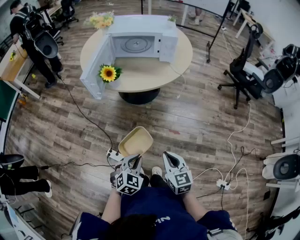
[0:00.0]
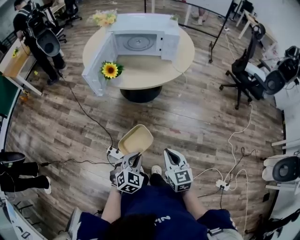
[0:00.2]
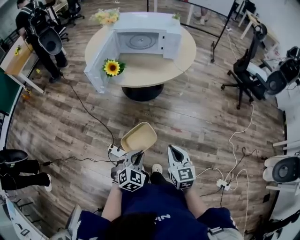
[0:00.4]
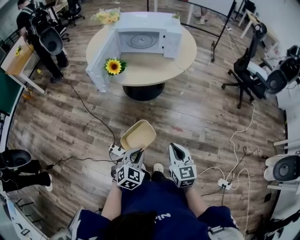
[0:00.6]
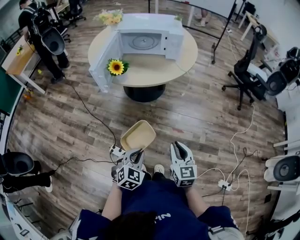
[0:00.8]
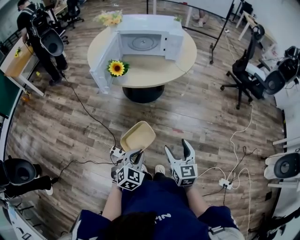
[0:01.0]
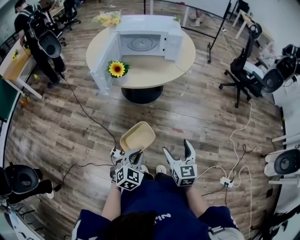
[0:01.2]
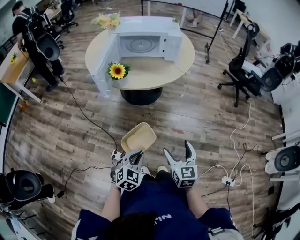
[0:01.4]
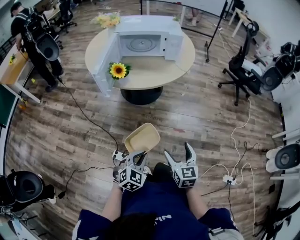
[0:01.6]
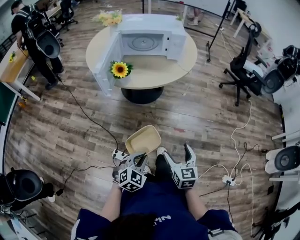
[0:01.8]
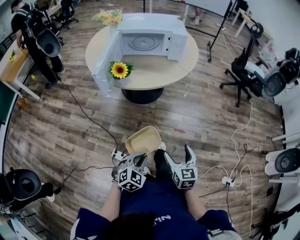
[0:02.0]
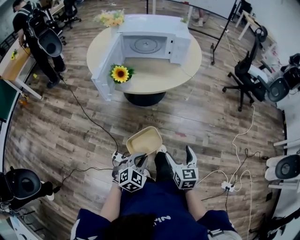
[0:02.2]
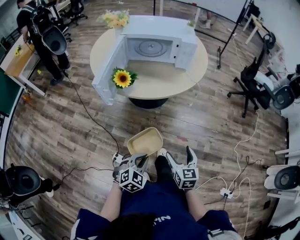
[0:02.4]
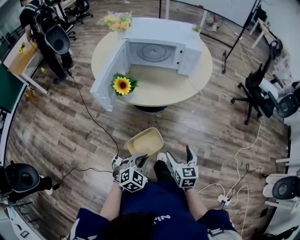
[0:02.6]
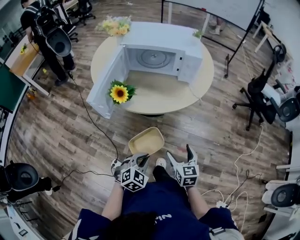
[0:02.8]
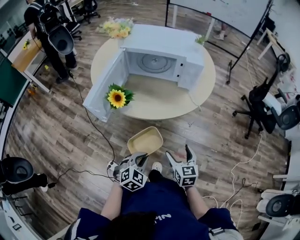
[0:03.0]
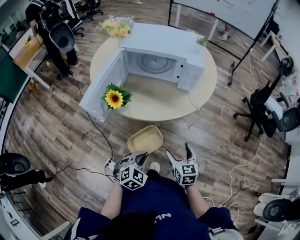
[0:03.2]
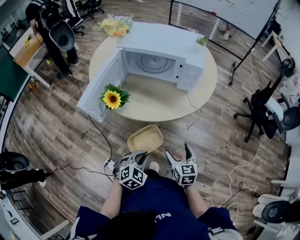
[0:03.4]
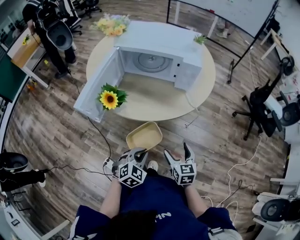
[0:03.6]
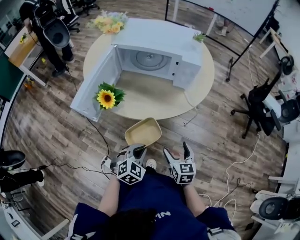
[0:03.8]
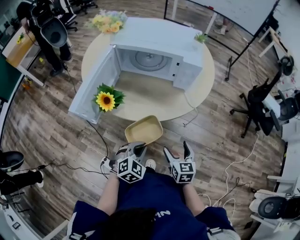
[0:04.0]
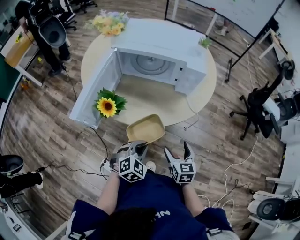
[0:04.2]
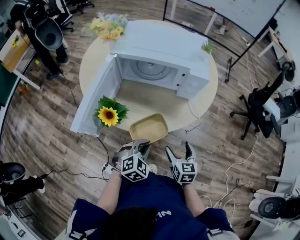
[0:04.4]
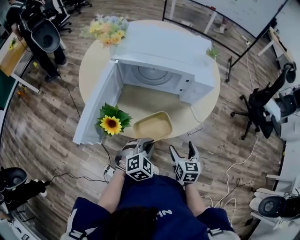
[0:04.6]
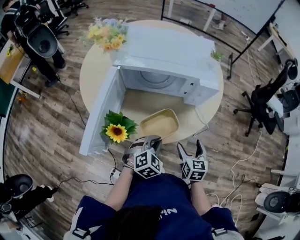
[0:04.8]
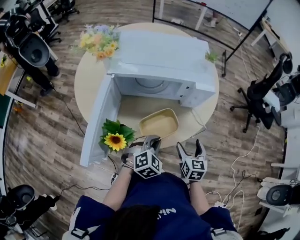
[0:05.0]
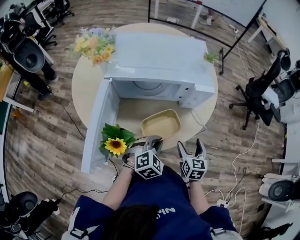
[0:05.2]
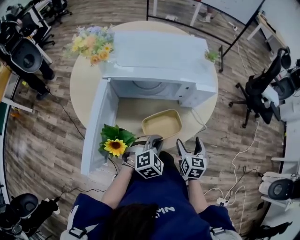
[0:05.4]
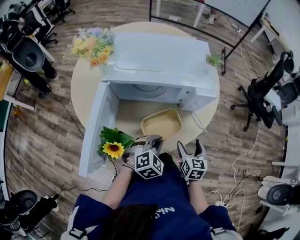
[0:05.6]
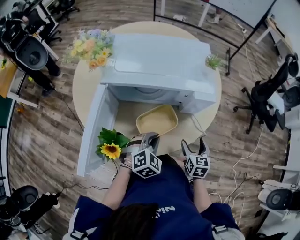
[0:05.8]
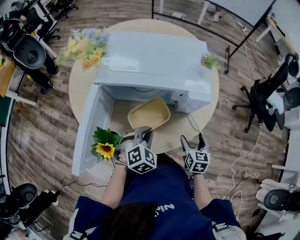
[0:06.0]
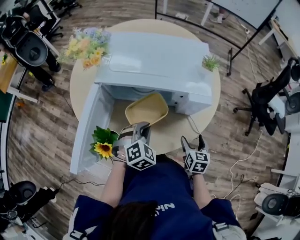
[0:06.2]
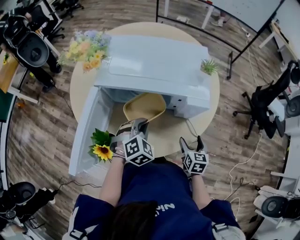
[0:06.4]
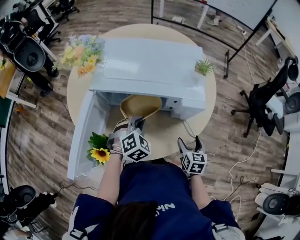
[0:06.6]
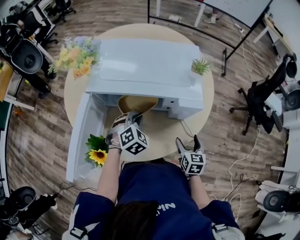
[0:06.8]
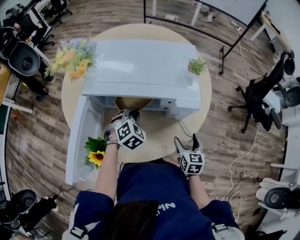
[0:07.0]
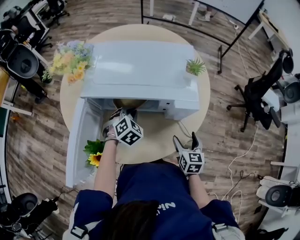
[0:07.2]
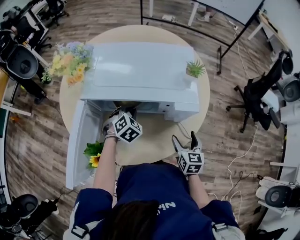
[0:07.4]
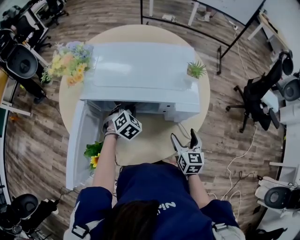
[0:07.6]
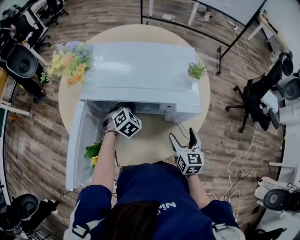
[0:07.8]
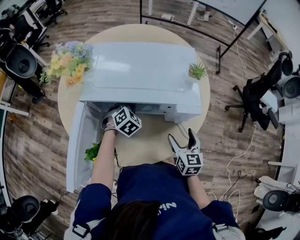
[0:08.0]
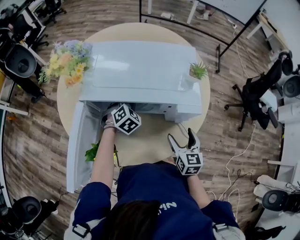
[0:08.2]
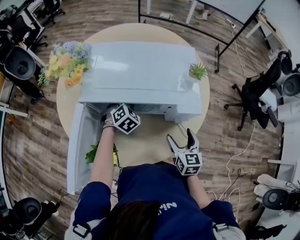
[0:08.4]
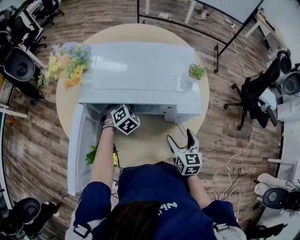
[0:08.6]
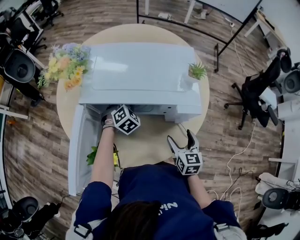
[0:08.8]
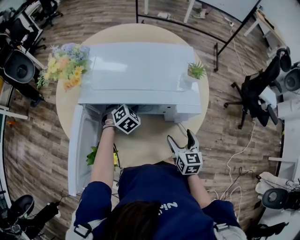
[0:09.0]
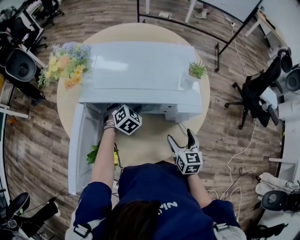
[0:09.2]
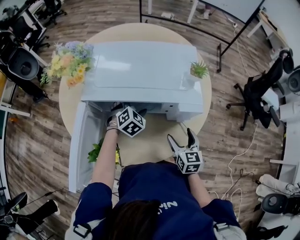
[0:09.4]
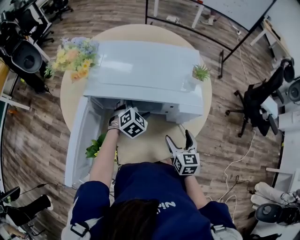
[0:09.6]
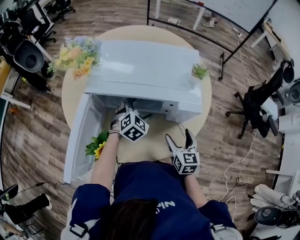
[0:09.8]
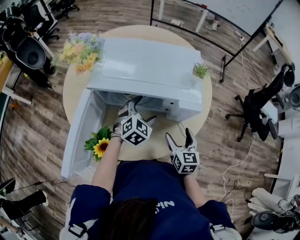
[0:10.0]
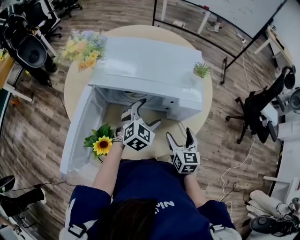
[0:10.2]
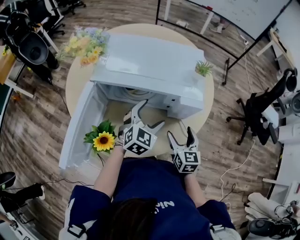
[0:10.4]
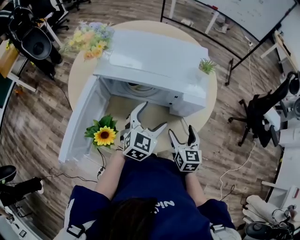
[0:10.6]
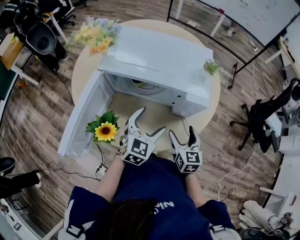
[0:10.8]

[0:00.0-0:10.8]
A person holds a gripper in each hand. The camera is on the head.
0:00.0 to 0:01.6: The right gripper opens its fingers.
0:01.6 to 0:03.0: The grippers both shift forward by about 25 cm.
0:03.0 to 0:04.6: Both grippers travel together forward, approximately 20 cm.
0:04.6 to 0:06.2: Both grippers move forward, about 15 cm.
0:06.2 to 0:07.8: The left gripper shifts some 15 cm forward. Meanwhile the right gripper is displaced upward and forward by about 10 cm.
0:07.8 to 0:09.2: The left gripper opens up.
0:09.2 to 0:10.8: The left gripper shifts roughly 20 cm backward, upward and to the right, and changes its angle by some 30 degrees.

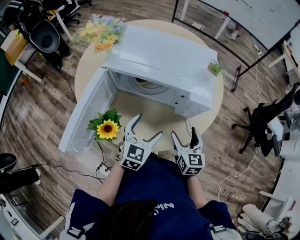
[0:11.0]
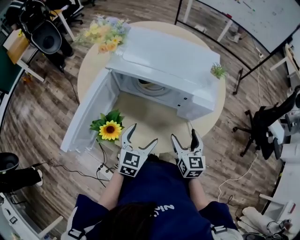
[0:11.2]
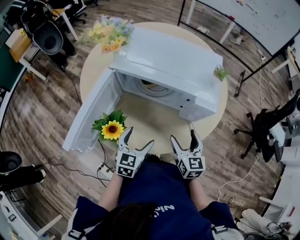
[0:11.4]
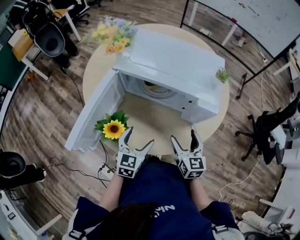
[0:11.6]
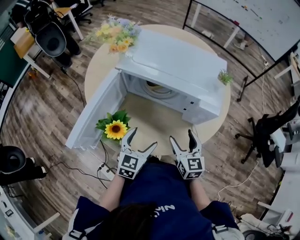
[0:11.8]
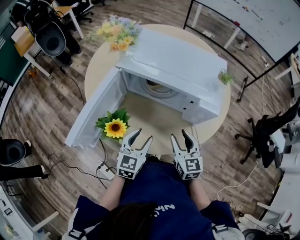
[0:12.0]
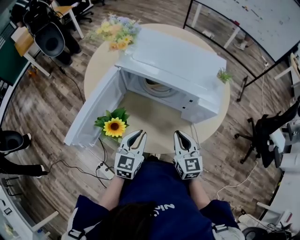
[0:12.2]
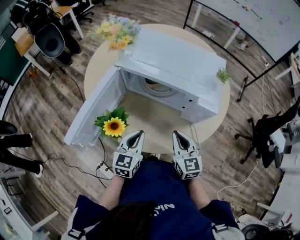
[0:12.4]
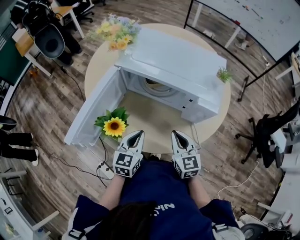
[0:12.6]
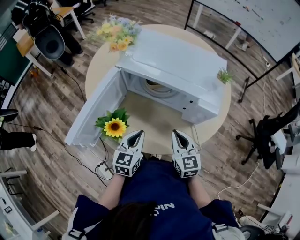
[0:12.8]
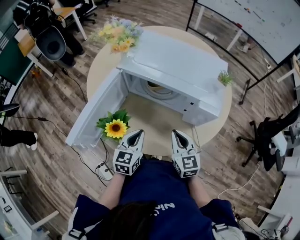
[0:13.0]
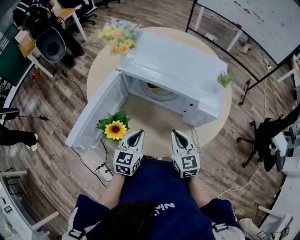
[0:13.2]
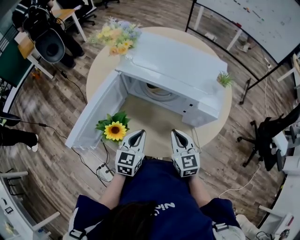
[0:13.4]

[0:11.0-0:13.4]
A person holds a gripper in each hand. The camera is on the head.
0:11.0 to 0:12.2: Both grippers travel together to the left, some 5 cm. The left gripper closes, while the right gripper closes.
0:12.2 to 0:13.4: The grippers make only small movements.

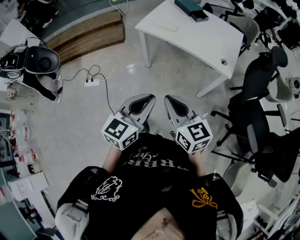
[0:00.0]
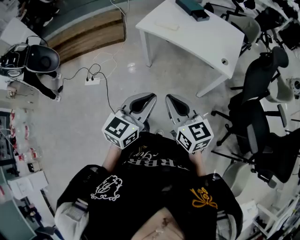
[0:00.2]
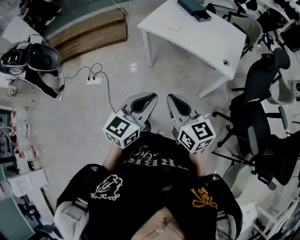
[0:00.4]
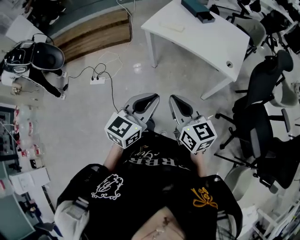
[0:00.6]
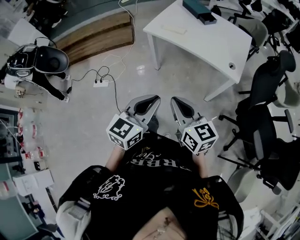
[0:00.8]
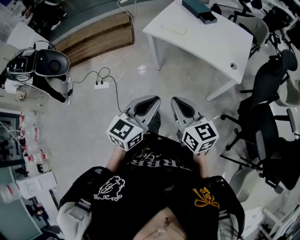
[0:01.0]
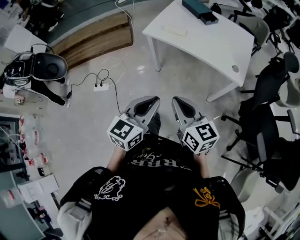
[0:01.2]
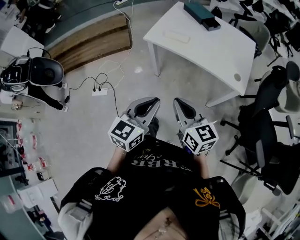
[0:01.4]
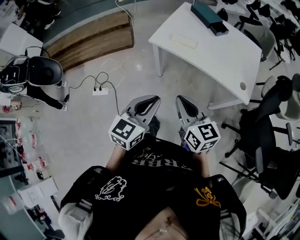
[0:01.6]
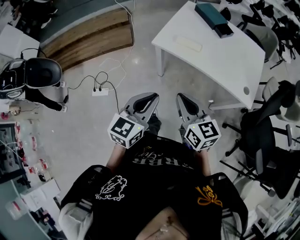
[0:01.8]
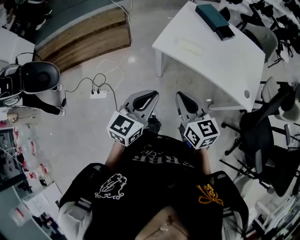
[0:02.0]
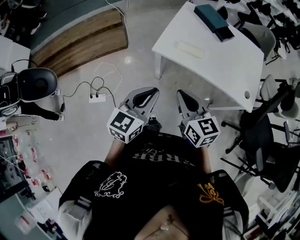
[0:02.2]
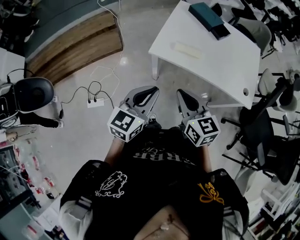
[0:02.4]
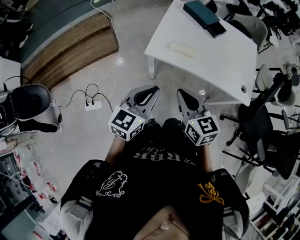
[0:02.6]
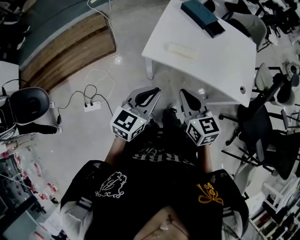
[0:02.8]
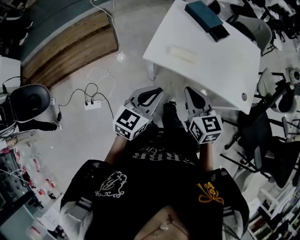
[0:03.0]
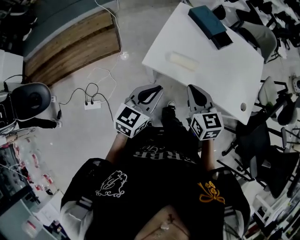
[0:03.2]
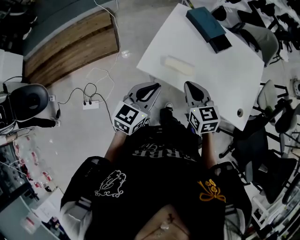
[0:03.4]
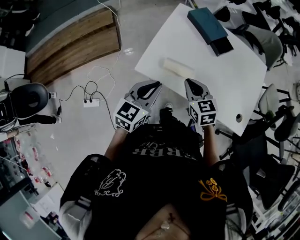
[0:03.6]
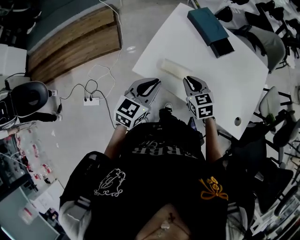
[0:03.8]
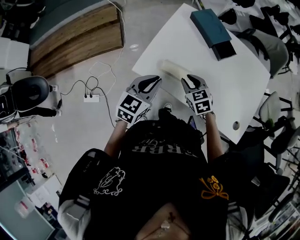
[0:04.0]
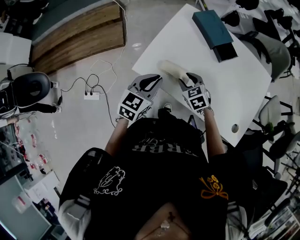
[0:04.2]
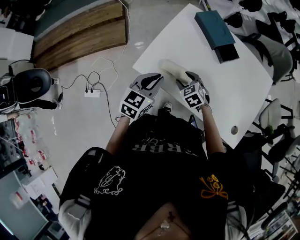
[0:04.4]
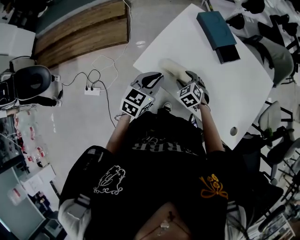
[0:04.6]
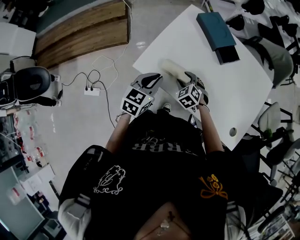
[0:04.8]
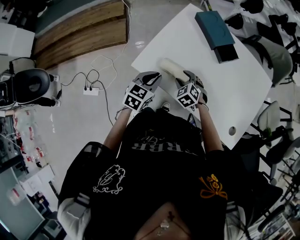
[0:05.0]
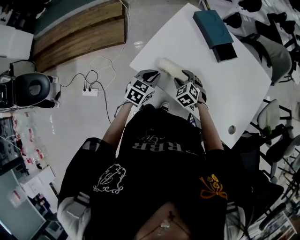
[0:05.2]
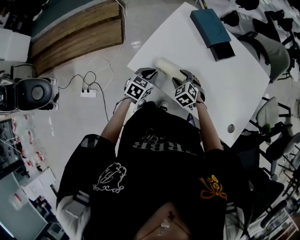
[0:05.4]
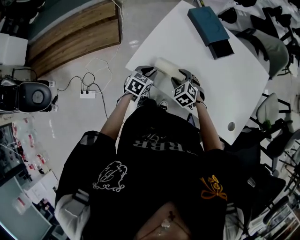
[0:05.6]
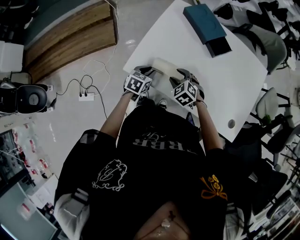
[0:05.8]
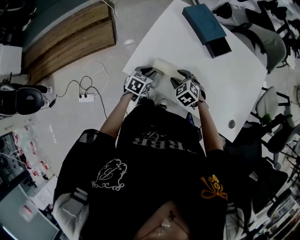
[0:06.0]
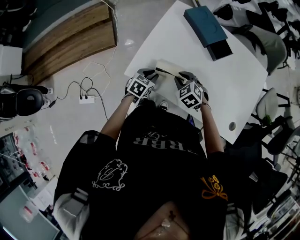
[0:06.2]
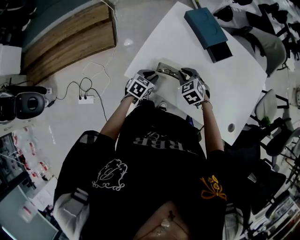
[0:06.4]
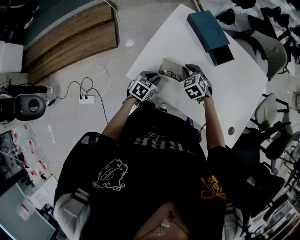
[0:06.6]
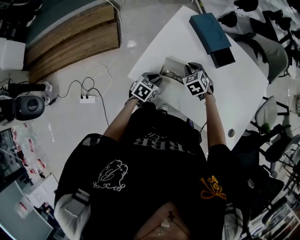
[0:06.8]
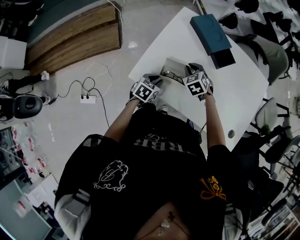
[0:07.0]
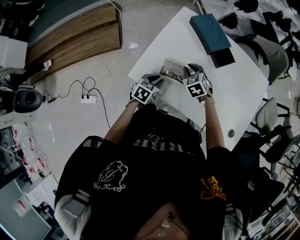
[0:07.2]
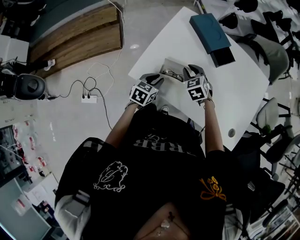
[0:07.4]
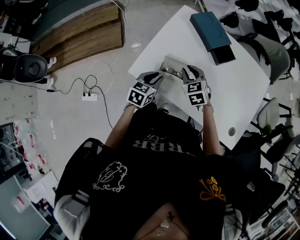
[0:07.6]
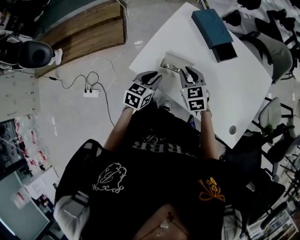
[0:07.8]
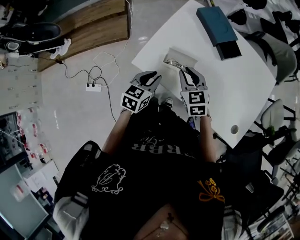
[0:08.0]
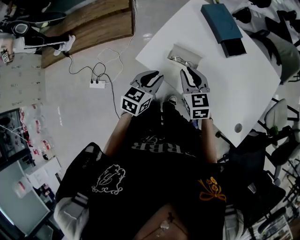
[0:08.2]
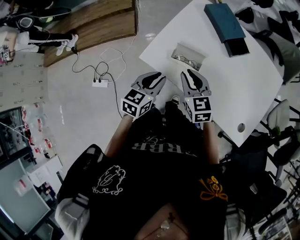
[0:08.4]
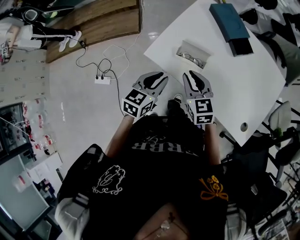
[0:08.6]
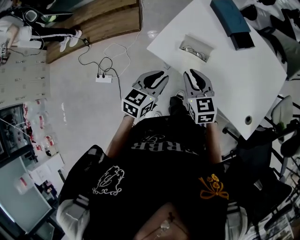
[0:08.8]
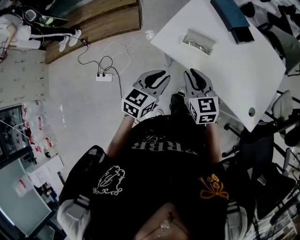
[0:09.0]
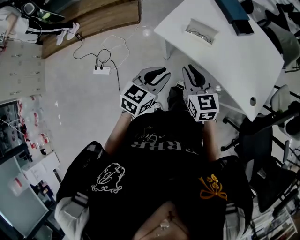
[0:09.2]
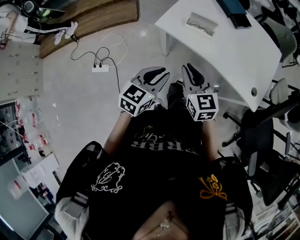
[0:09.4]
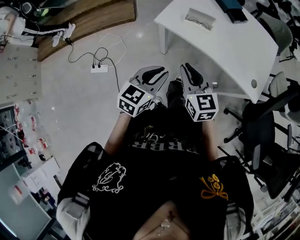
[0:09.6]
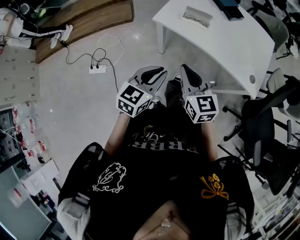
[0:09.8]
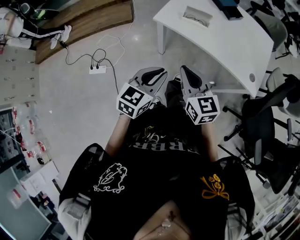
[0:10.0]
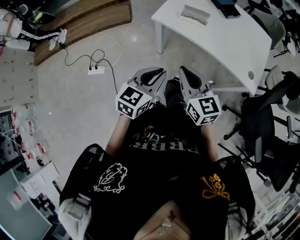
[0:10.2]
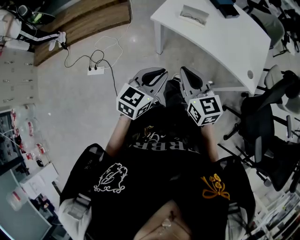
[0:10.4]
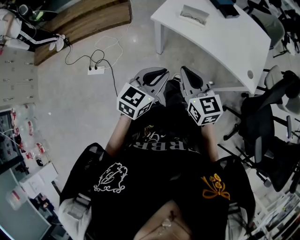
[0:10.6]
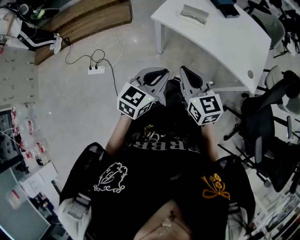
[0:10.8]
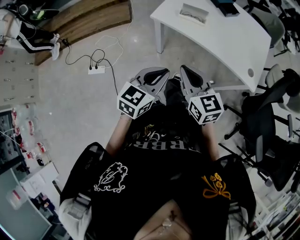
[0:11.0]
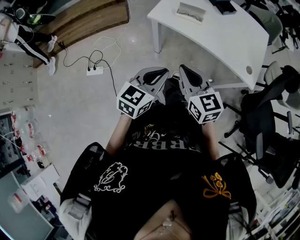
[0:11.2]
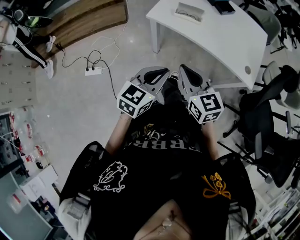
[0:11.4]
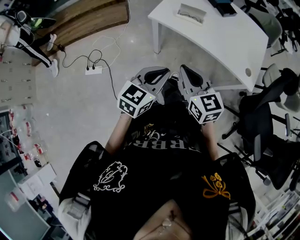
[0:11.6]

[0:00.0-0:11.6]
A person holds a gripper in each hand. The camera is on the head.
0:00.0 to 0:01.4: The grippers both shift forward by some 15 cm.
0:01.4 to 0:02.8: Both grippers move forward and to the left, some 30 cm.
0:02.8 to 0:04.4: The left gripper travels forward and to the right by some 25 cm. Meanwhile the right gripper moves forward and downward, approximately 35 cm, turns by about 50 degrees, and opens.
0:04.4 to 0:05.8: The left gripper travels downward by approximately 15 cm, and turns by roughly 20 degrees.
0:05.8 to 0:07.2: The right gripper goes some 10 cm forward, and closes its fingers.
0:07.2 to 0:08.8: The grippers both shift backward and upward by roughly 20 cm. The left gripper turns by about 20 degrees. Meanwhile the right gripper swivels approximately 30 degrees.
0:08.8 to 0:10.2: Both grippers move backward, approximately 25 cm.
0:10.2 to 0:11.6: There are only small adjustments of the grippers.
